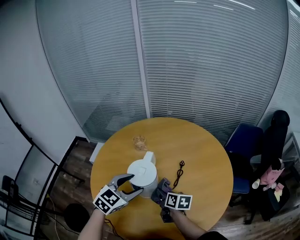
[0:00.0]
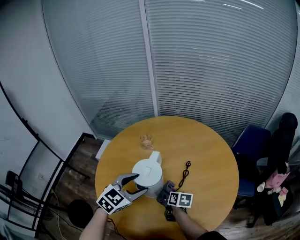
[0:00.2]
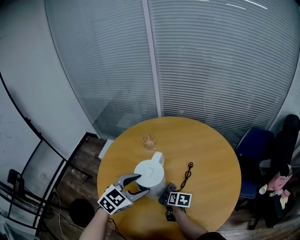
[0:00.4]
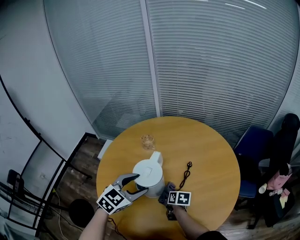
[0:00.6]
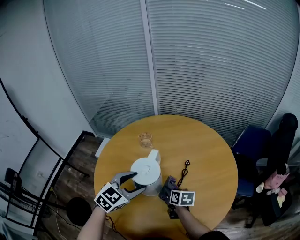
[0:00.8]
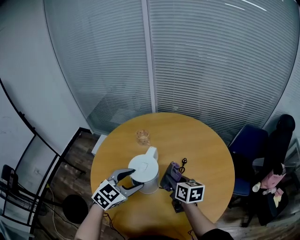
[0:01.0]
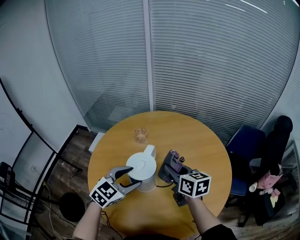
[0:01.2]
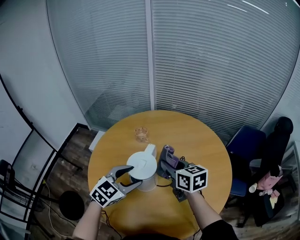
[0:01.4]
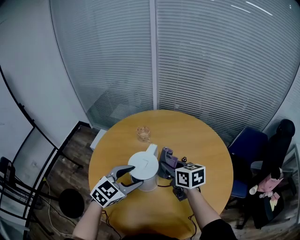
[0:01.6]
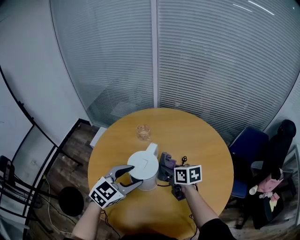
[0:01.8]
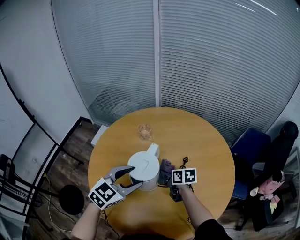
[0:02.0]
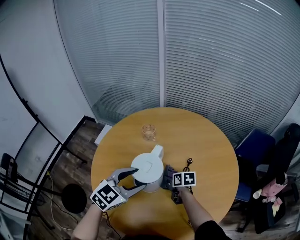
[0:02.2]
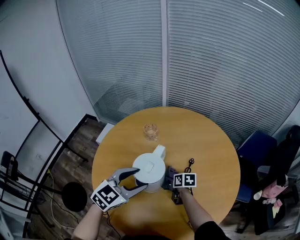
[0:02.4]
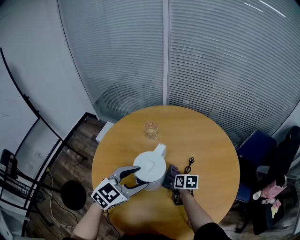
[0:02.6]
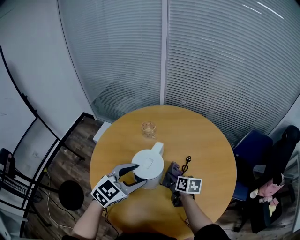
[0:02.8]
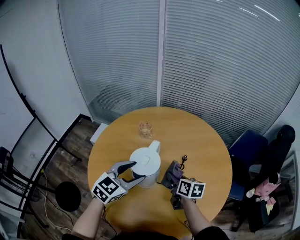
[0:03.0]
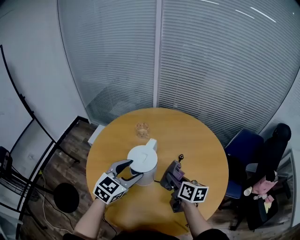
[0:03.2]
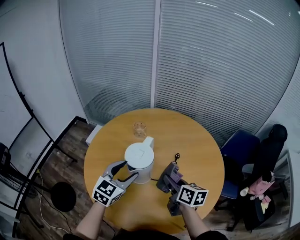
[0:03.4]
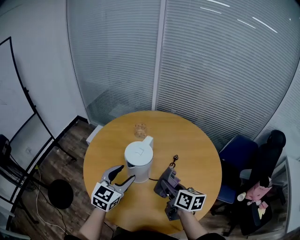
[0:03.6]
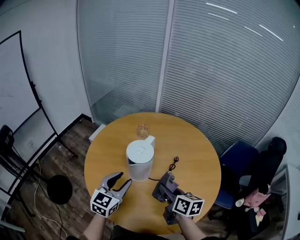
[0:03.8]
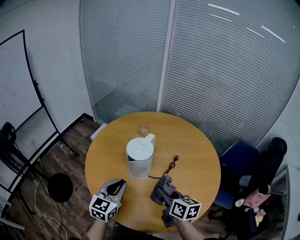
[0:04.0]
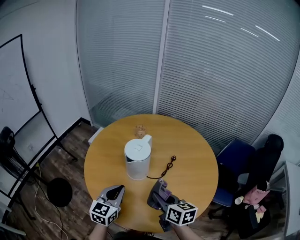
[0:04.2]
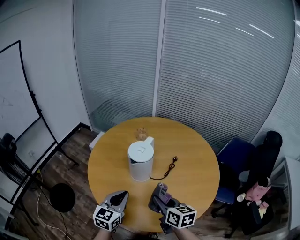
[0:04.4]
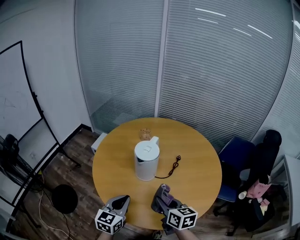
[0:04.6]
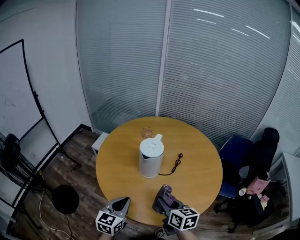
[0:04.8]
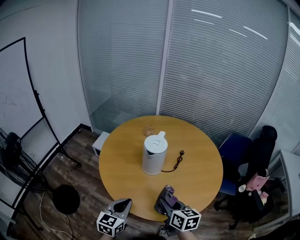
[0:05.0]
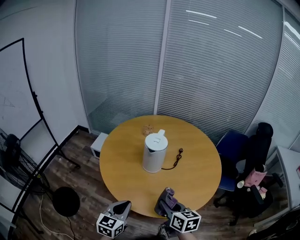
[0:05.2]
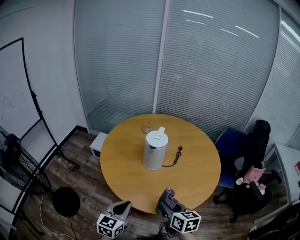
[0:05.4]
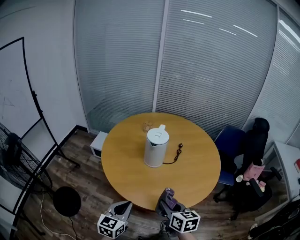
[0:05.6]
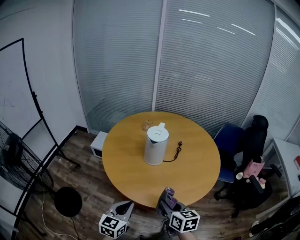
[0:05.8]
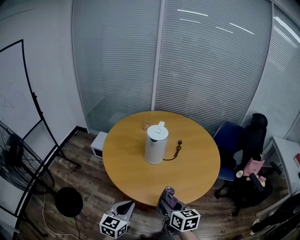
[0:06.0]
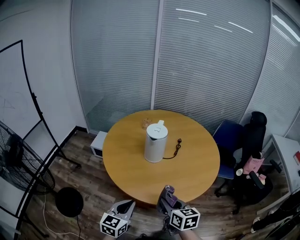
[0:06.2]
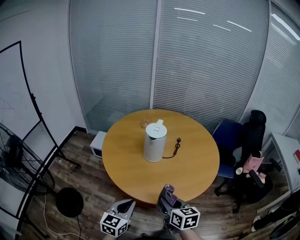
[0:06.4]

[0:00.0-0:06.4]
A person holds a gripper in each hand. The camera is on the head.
0:00.0 to 0:01.6: The right gripper travels upward and forward by some 15 cm, and changes its angle by approximately 30 degrees.
0:01.6 to 0:03.2: The right gripper shifts some 5 cm backward, and goes downward and returns, roughly 20 cm each way.
0:03.2 to 0:04.8: The two grippers go about 25 cm backward and to the left. The left gripper changes its angle by approximately 20 degrees, and closes its fingers.
0:04.8 to 0:06.4: The two grippers go roughly 15 cm backward.

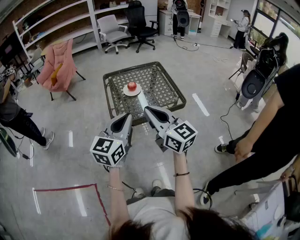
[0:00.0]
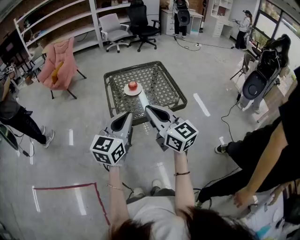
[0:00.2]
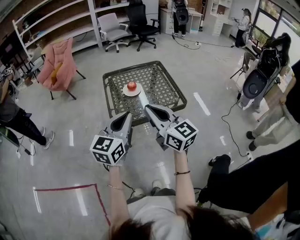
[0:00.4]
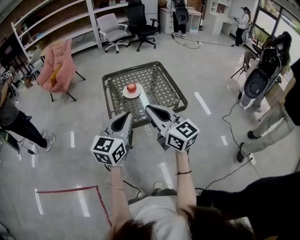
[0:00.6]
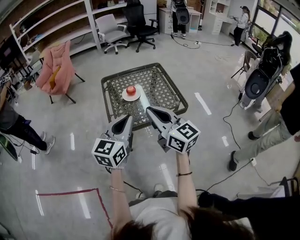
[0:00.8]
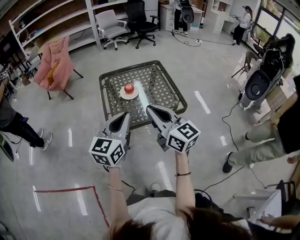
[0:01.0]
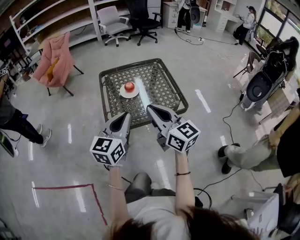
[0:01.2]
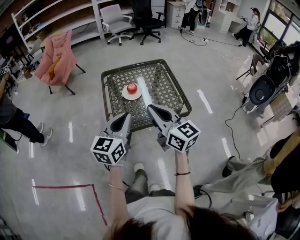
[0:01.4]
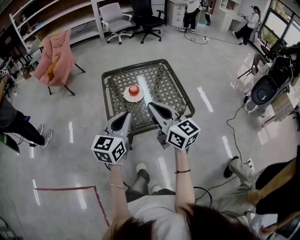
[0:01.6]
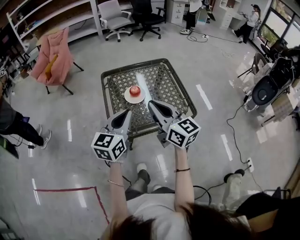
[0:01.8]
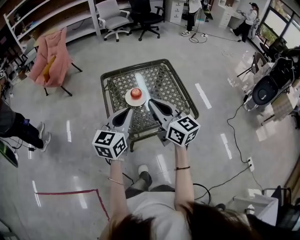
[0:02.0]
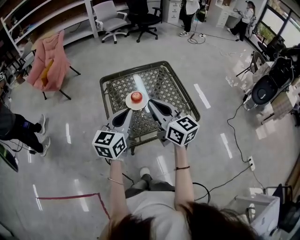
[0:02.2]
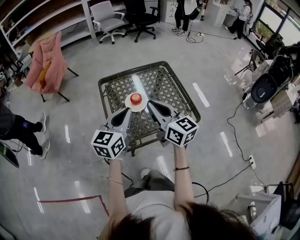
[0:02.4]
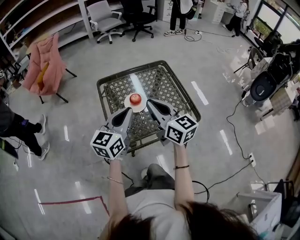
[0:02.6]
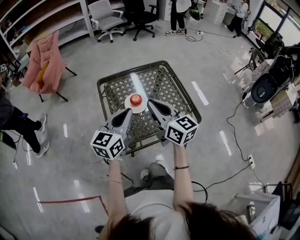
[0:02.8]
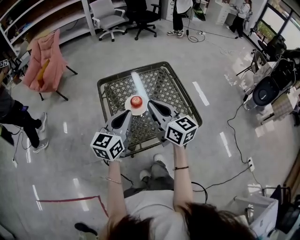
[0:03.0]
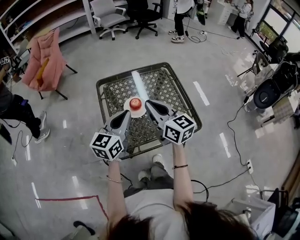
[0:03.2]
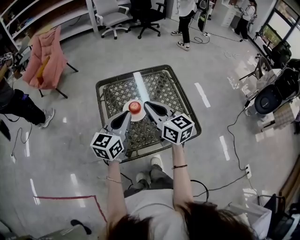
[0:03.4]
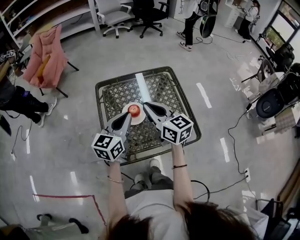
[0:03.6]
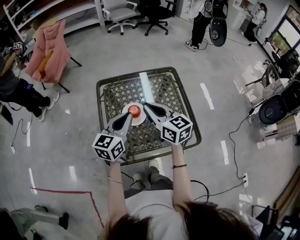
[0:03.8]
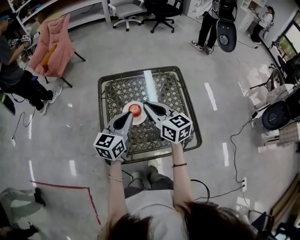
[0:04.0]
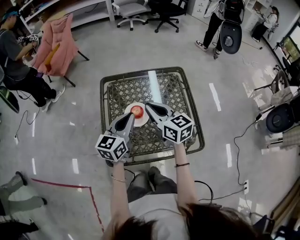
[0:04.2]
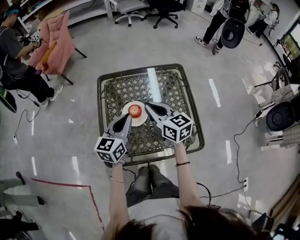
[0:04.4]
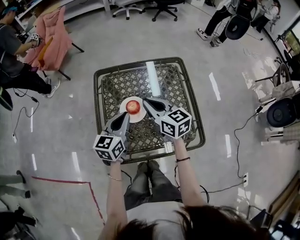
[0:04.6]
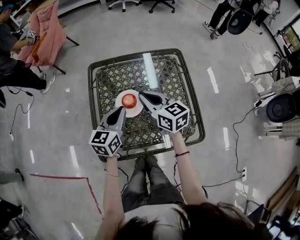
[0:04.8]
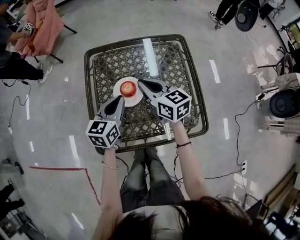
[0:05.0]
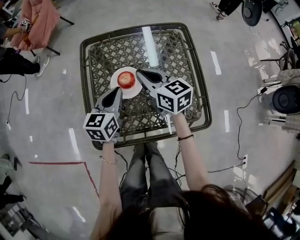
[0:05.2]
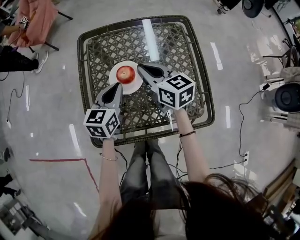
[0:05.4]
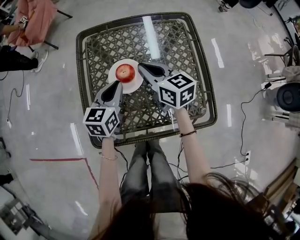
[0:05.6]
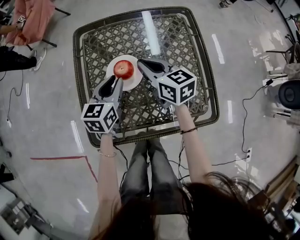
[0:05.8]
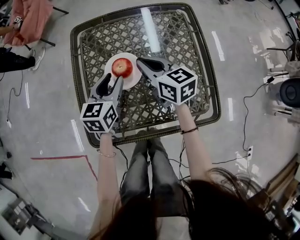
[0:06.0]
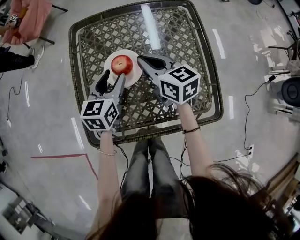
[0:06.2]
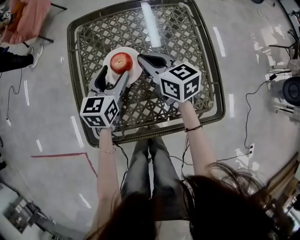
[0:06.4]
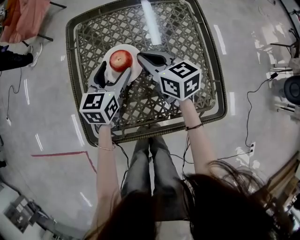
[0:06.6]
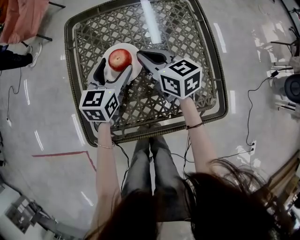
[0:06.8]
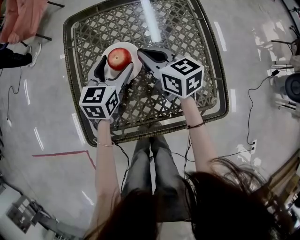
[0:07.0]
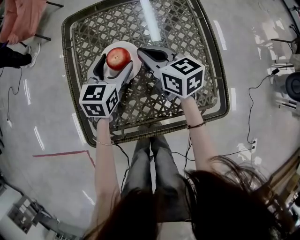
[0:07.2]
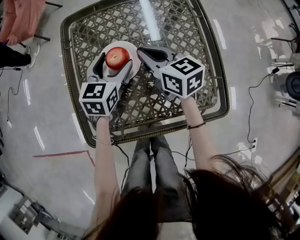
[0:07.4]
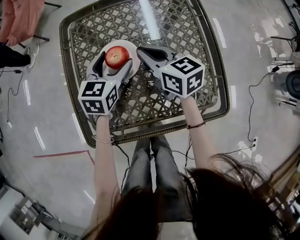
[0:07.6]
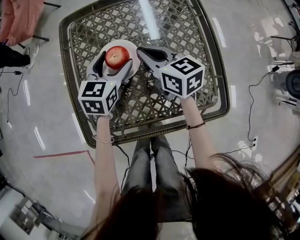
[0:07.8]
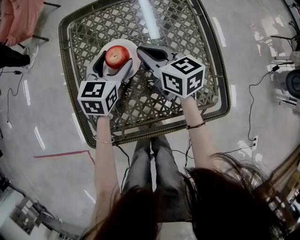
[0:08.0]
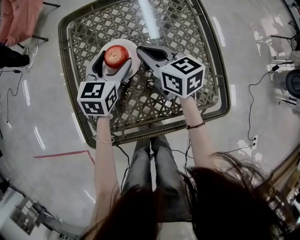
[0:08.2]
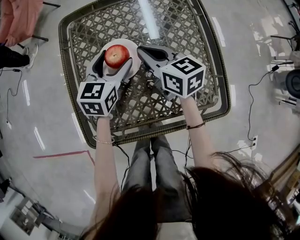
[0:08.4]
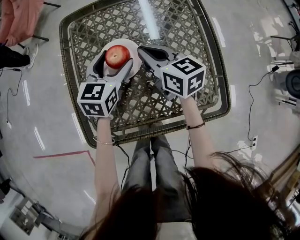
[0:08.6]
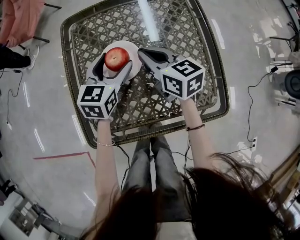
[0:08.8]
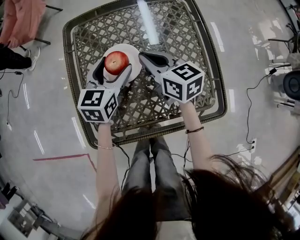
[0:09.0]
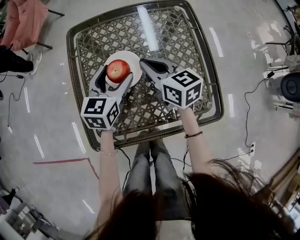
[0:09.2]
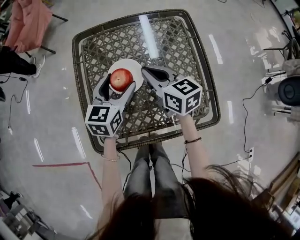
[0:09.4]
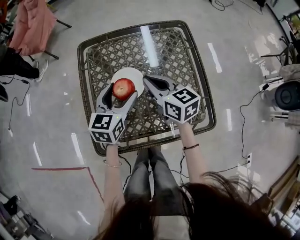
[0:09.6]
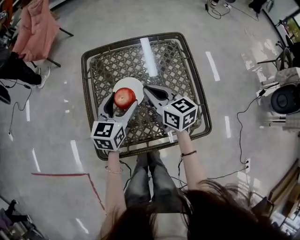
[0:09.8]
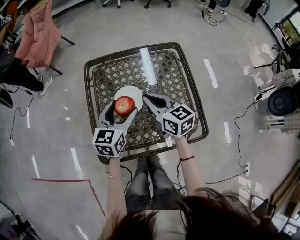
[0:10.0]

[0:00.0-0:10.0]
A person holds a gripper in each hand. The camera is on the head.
0:00.0 to 0:01.4: Both grippers travel together forward, some 15 cm.
0:01.4 to 0:02.8: Both grippers move forward, about 20 cm.
0:02.8 to 0:04.2: The two grippers go roughly 15 cm forward and downward.
0:04.2 to 0:05.8: Both grippers move downward, about 20 cm.
0:05.8 to 0:07.2: The left gripper changes place by approximately 5 cm, and opens its fingers.
0:07.2 to 0:08.6: The two grippers keep their place.
0:08.6 to 0:10.0: The two grippers go approximately 15 cm upward and backward.

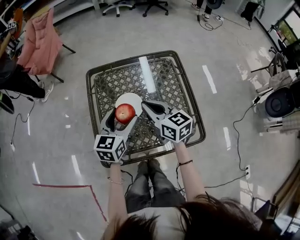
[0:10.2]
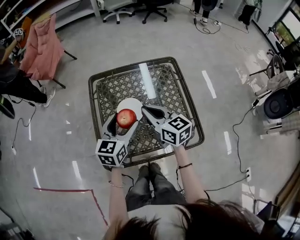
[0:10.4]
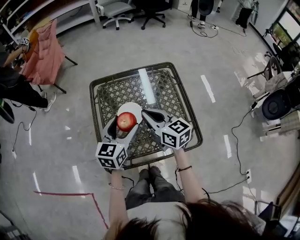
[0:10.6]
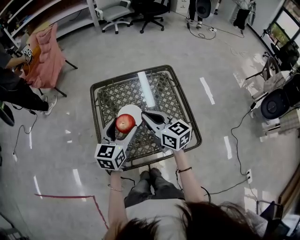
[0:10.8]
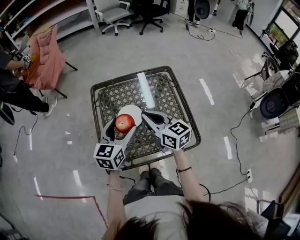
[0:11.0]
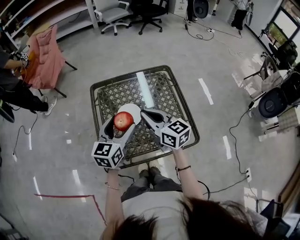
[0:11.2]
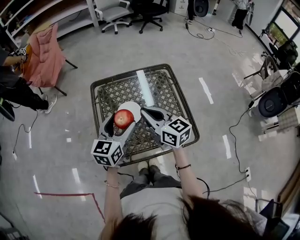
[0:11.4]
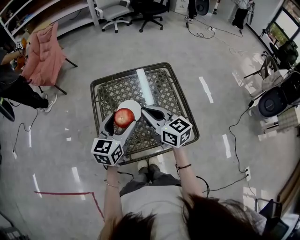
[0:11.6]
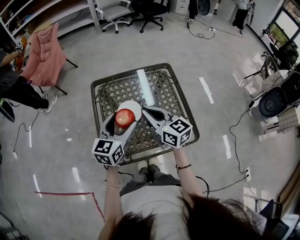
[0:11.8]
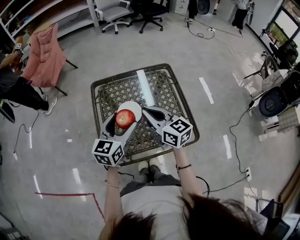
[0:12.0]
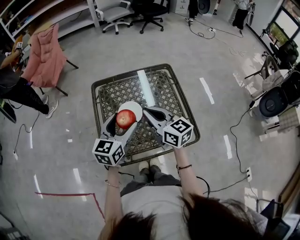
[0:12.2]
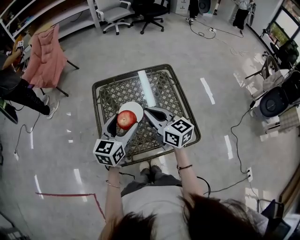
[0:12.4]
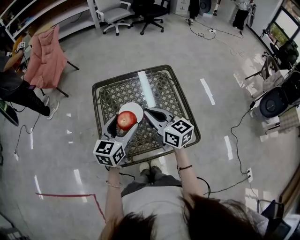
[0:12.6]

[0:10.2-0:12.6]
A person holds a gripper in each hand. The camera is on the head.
0:10.2 to 0:11.4: The two grippers go about 10 cm upward.
0:11.4 to 0:12.6: Both grippers stay about where they are.

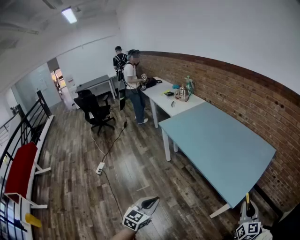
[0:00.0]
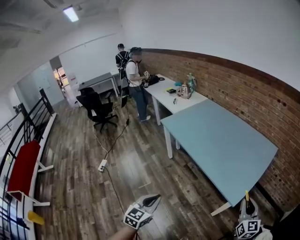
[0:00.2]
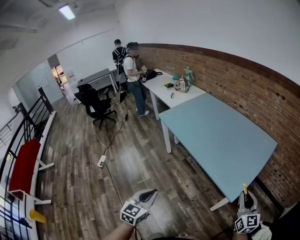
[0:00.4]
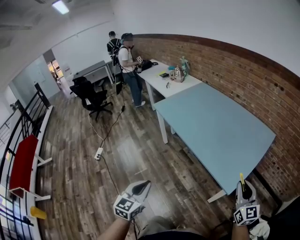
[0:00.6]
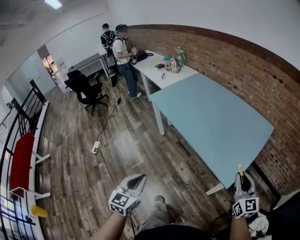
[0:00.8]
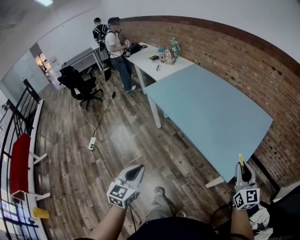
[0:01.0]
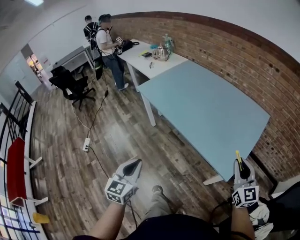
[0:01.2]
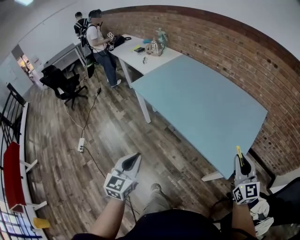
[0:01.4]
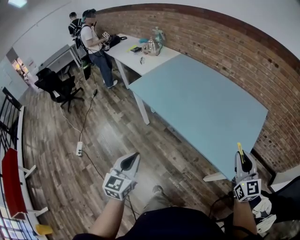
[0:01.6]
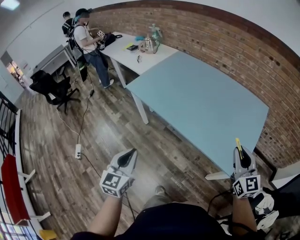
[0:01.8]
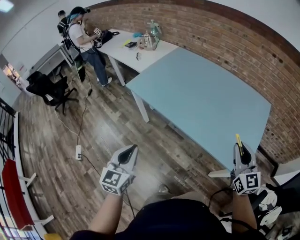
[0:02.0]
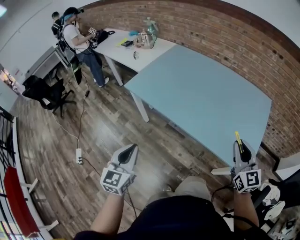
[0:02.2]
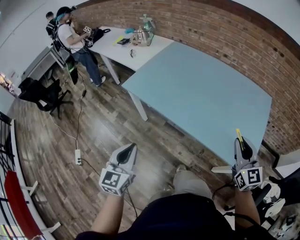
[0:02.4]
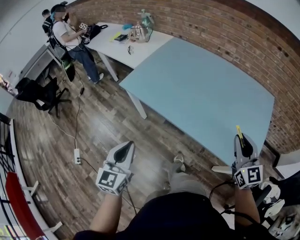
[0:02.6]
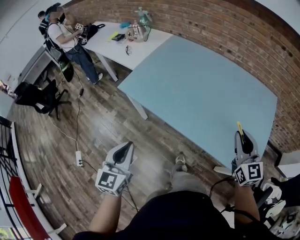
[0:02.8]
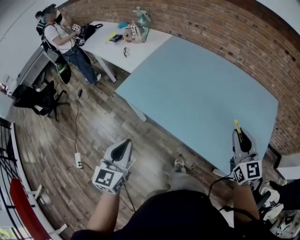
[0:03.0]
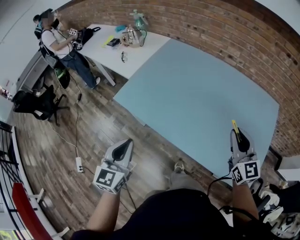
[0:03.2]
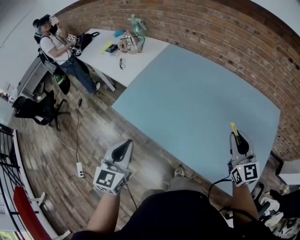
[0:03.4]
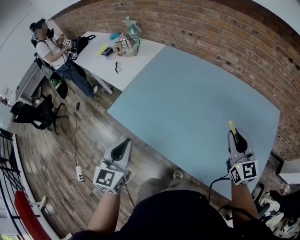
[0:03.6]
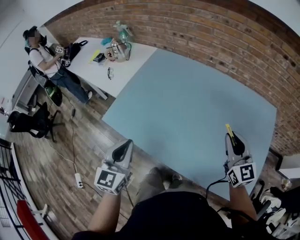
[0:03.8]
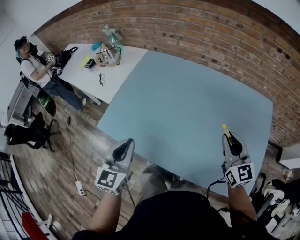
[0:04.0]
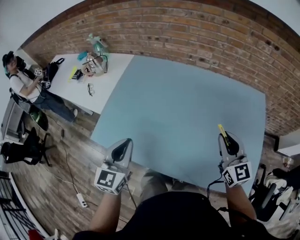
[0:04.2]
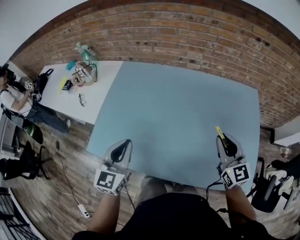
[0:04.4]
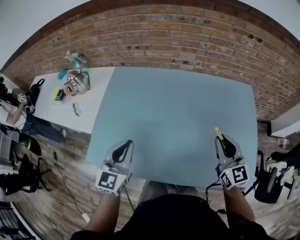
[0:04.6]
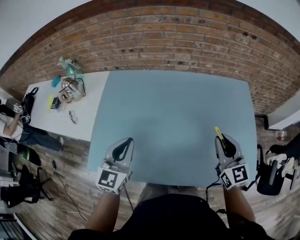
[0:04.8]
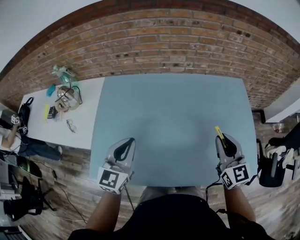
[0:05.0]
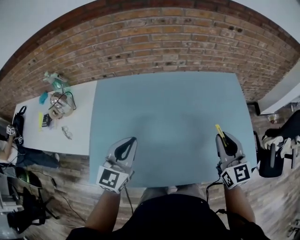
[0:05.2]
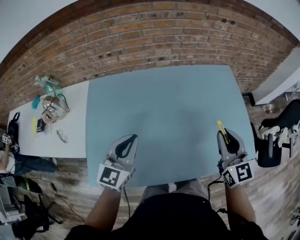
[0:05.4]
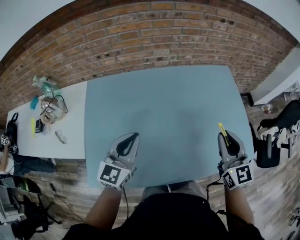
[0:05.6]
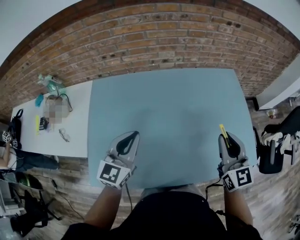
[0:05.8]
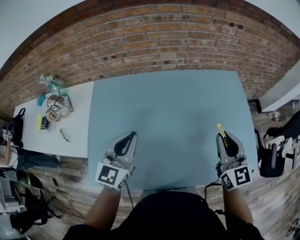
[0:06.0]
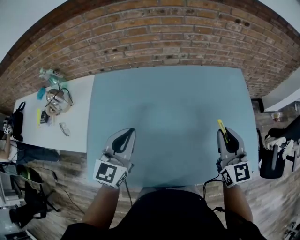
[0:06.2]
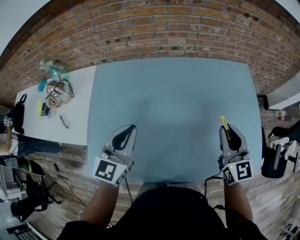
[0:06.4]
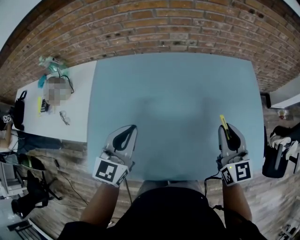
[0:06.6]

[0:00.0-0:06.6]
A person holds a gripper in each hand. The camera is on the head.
0:00.0 to 0:01.6: The right gripper heads forward and to the left, covering roughly 15 cm. The left gripper travels forward by approximately 15 cm.
0:01.6 to 0:03.2: The left gripper shifts roughly 30 cm forward; the right gripper travels forward and to the left by some 30 cm.
0:03.2 to 0:05.0: The right gripper shifts by some 10 cm, and rotates roughly 30 degrees. The left gripper shifts by about 30 cm, and changes its angle by roughly 40 degrees.
0:05.0 to 0:06.6: The left gripper changes place by approximately 5 cm.
